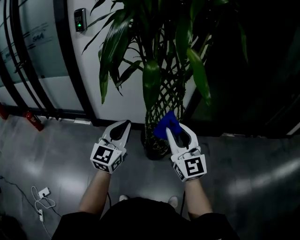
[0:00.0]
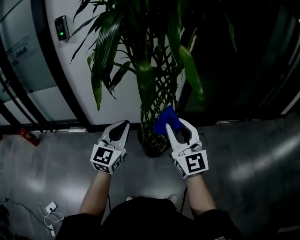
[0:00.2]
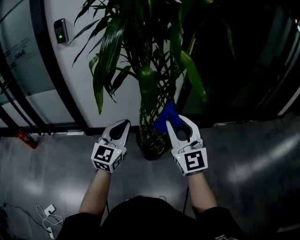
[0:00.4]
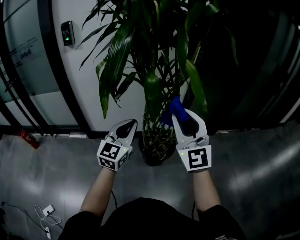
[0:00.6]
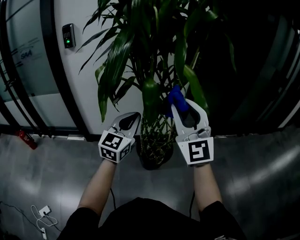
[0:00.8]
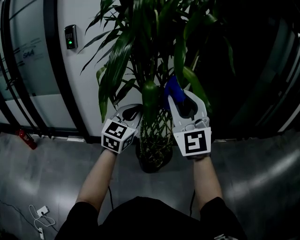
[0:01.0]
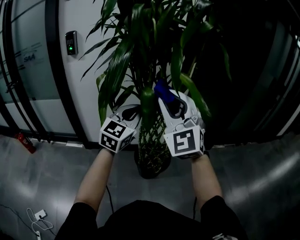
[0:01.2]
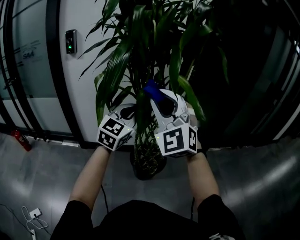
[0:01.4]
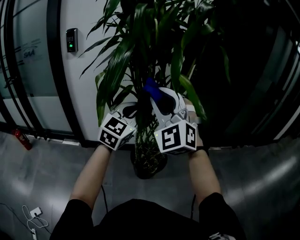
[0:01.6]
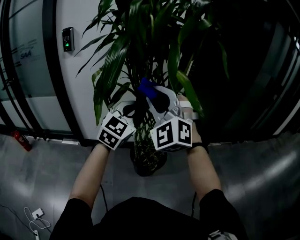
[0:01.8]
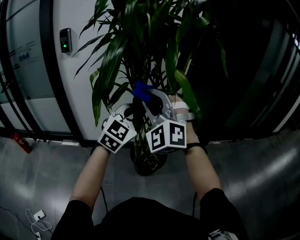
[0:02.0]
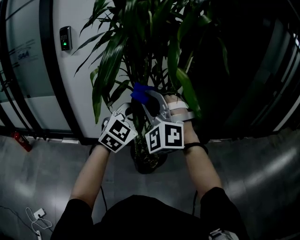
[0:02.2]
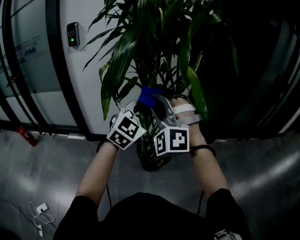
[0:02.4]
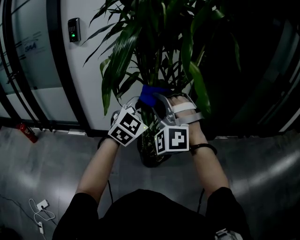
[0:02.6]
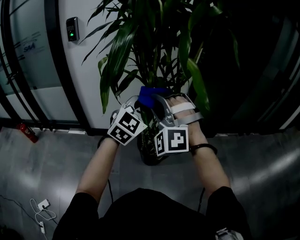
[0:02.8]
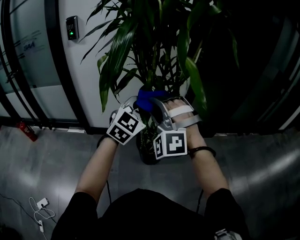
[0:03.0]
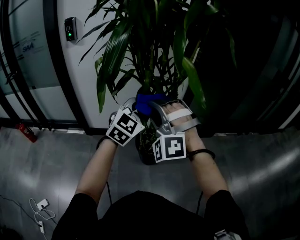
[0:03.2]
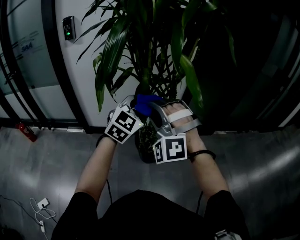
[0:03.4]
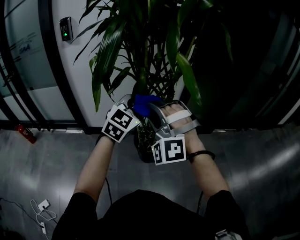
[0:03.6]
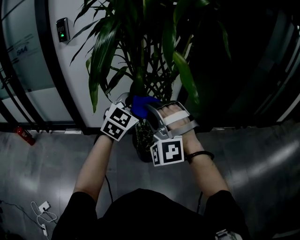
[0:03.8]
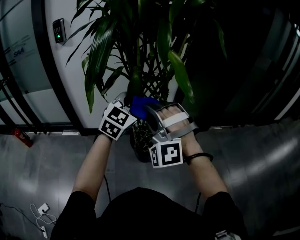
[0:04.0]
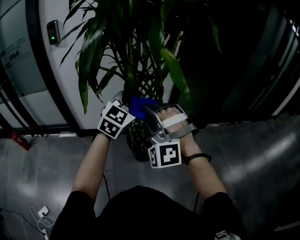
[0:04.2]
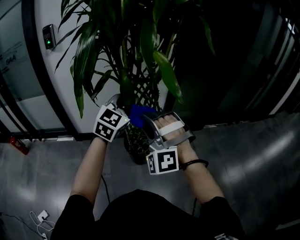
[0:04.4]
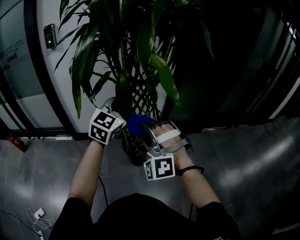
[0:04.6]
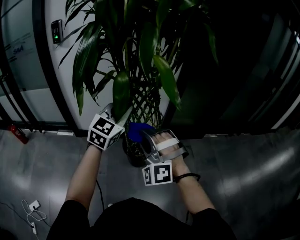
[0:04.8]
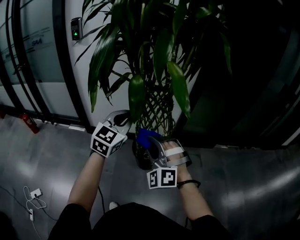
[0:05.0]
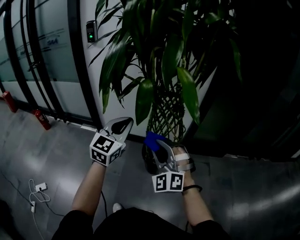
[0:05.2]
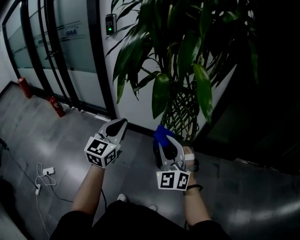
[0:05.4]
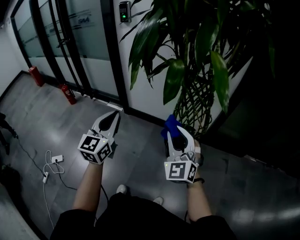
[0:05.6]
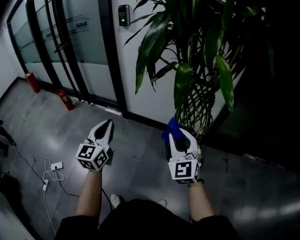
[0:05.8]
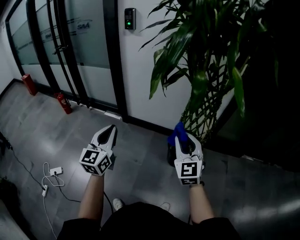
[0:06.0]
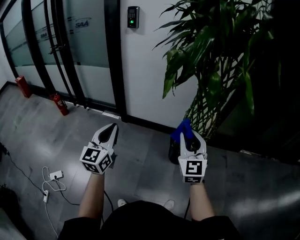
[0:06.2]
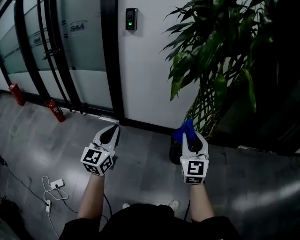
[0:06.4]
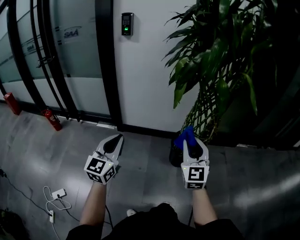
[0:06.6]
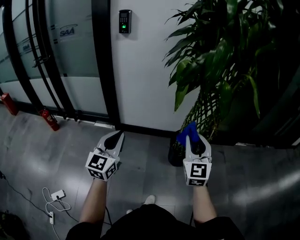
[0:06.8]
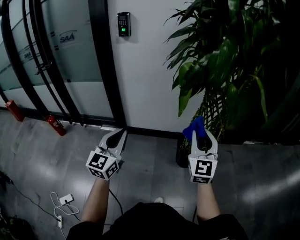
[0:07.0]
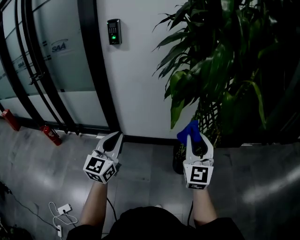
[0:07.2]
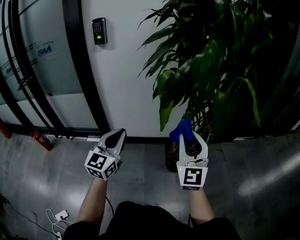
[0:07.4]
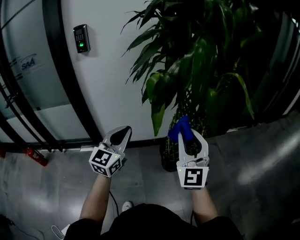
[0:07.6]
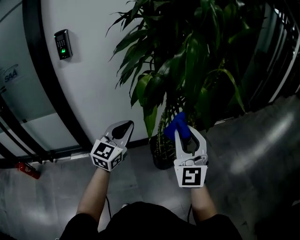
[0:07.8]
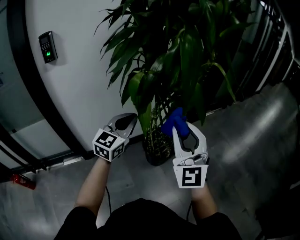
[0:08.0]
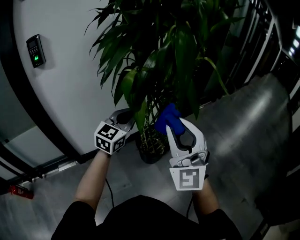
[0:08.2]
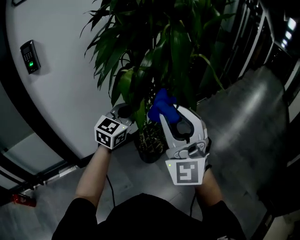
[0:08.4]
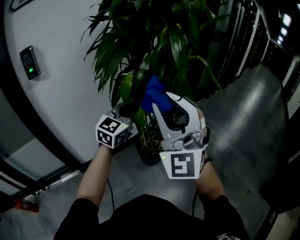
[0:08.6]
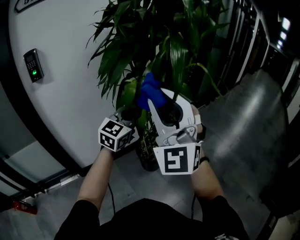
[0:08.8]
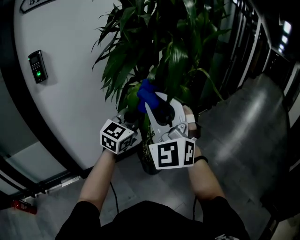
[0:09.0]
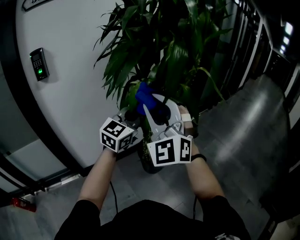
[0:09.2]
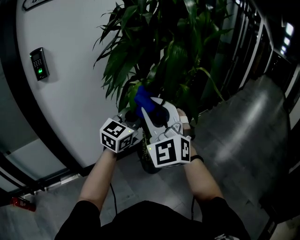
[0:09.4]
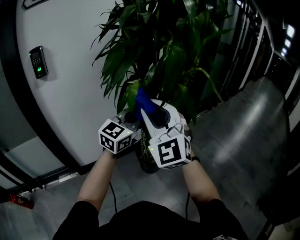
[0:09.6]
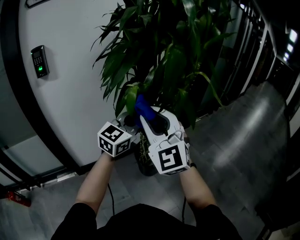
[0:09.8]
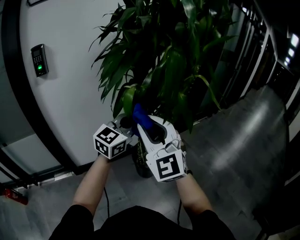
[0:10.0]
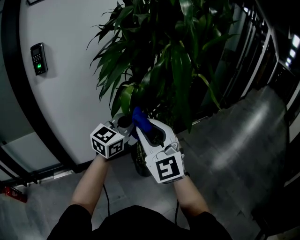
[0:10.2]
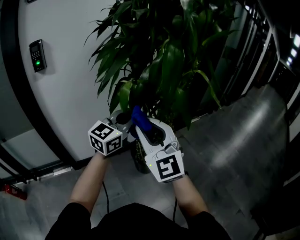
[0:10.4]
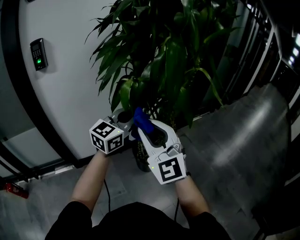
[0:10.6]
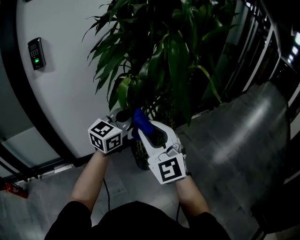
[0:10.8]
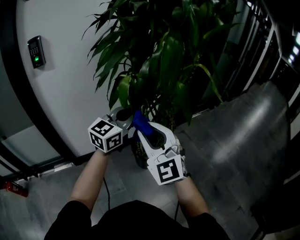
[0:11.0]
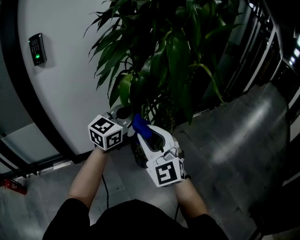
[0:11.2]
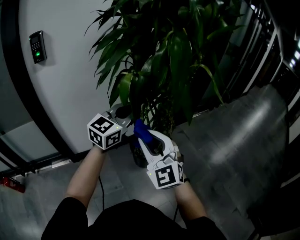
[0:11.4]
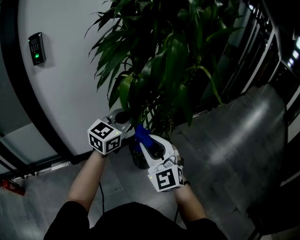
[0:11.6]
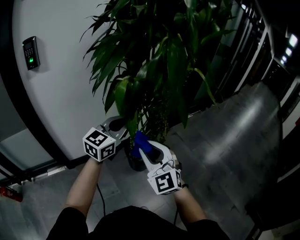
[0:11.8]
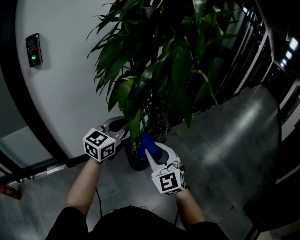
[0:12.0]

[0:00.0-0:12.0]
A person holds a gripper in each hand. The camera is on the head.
0:00.0 to 0:01.6: The left gripper is displaced upward, forward and to the right by roughly 15 cm, and changes its angle by about 20 degrees; the right gripper heads upward and to the left, covering about 20 cm, and rolls counterclockwise, seen from behind, by roughly 50 degrees.
0:01.6 to 0:03.0: The left gripper changes place by about 5 cm, while the right gripper goes roughly 10 cm downward, and changes its angle by about 30 degrees.
0:03.0 to 0:04.4: The right gripper moves to the right, some 5 cm.
0:04.4 to 0:06.0: The left gripper shifts by about 40 cm, and turns by about 50 degrees. The right gripper travels downward by approximately 10 cm, and rotates around the line of its fingers by approximately 60 degrees, clockwise from behind.
0:06.0 to 0:07.6: The left gripper shifts by roughly 20 cm, and changes its angle by some 40 degrees. The right gripper ends up some 15 cm from where it was, and rotates about 30 degrees.
0:07.6 to 0:09.0: The left gripper moves forward, to the right and upward, roughly 15 cm, and changes its angle by about 40 degrees; the right gripper moves upward and to the left, about 20 cm, and rotates about 40 degrees.
0:09.0 to 0:10.4: The right gripper heads downward, covering about 10 cm, and changes its angle by about 30 degrees.
0:10.4 to 0:12.0: The left gripper moves downward, roughly 5 cm, while the right gripper travels downward by some 10 cm.

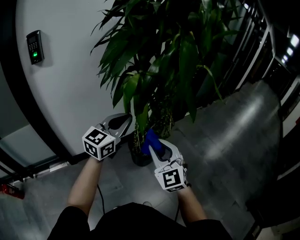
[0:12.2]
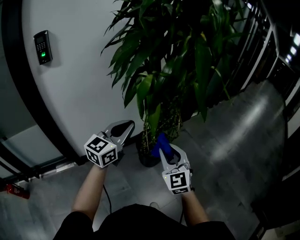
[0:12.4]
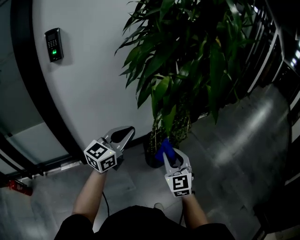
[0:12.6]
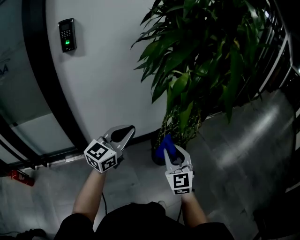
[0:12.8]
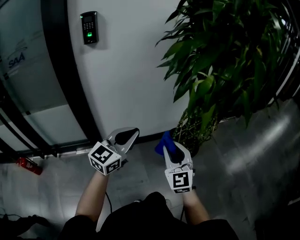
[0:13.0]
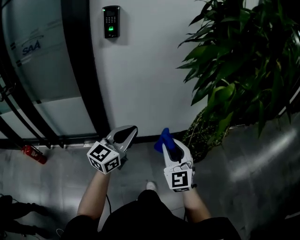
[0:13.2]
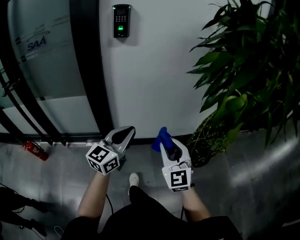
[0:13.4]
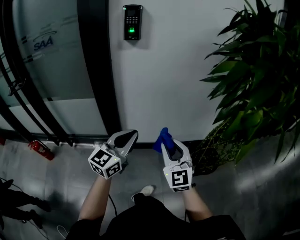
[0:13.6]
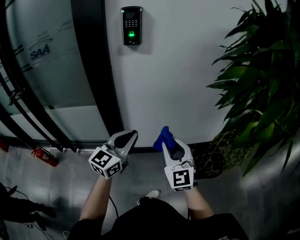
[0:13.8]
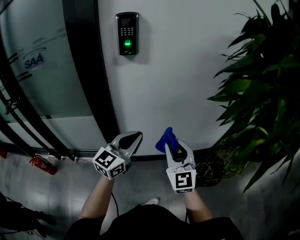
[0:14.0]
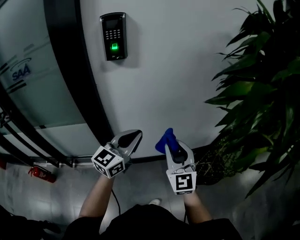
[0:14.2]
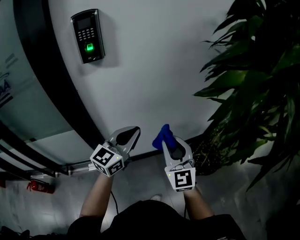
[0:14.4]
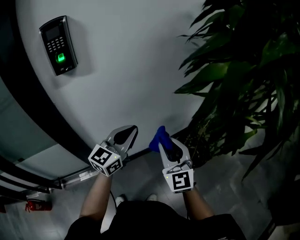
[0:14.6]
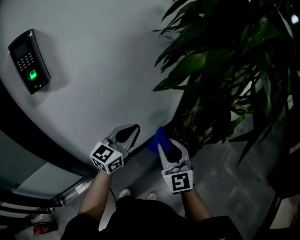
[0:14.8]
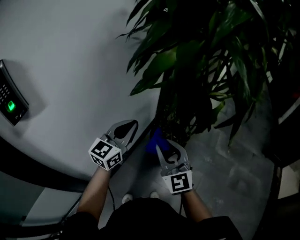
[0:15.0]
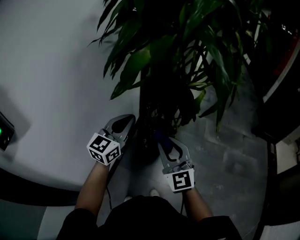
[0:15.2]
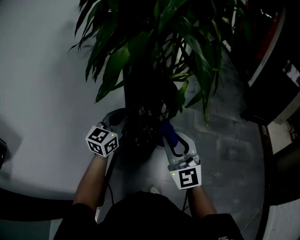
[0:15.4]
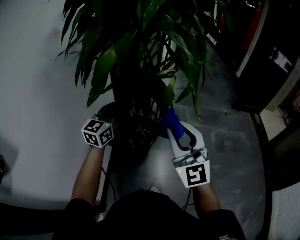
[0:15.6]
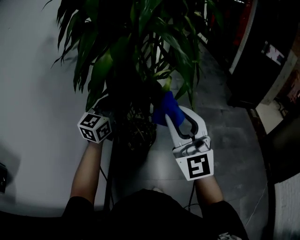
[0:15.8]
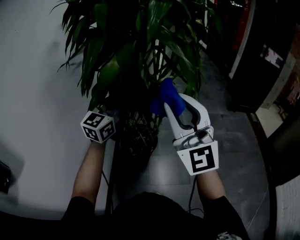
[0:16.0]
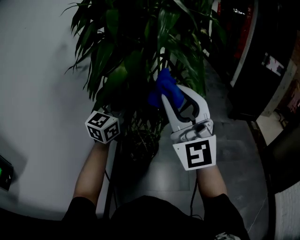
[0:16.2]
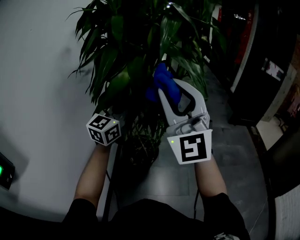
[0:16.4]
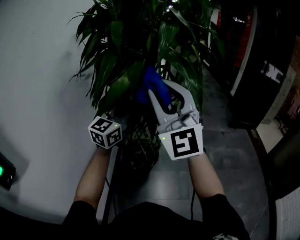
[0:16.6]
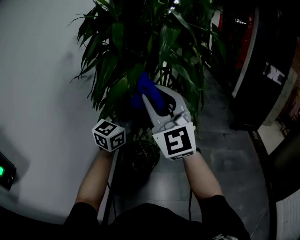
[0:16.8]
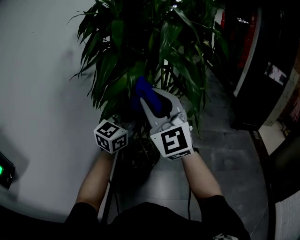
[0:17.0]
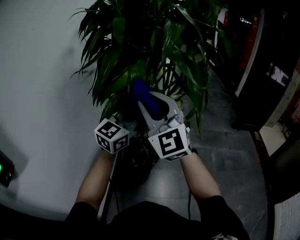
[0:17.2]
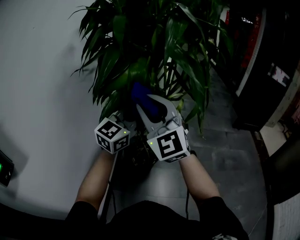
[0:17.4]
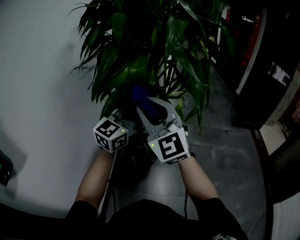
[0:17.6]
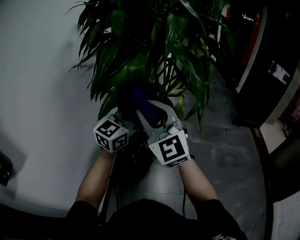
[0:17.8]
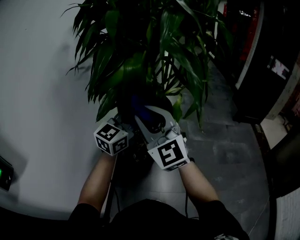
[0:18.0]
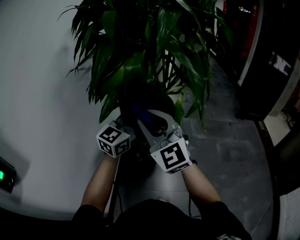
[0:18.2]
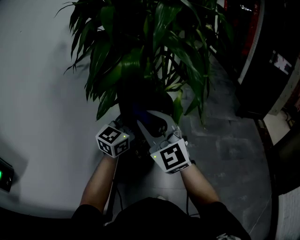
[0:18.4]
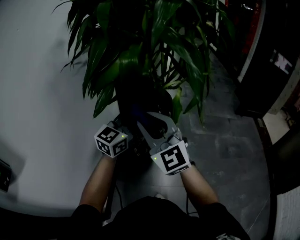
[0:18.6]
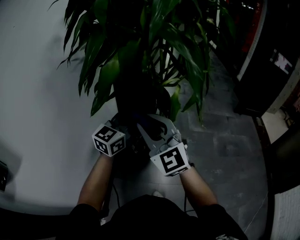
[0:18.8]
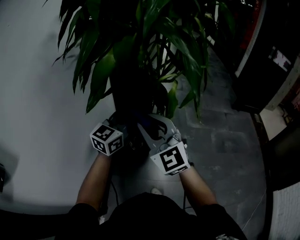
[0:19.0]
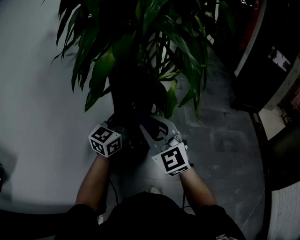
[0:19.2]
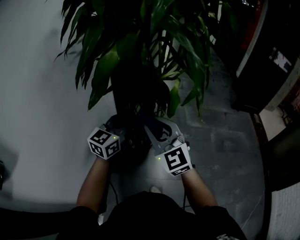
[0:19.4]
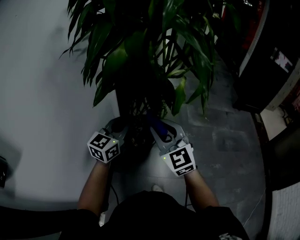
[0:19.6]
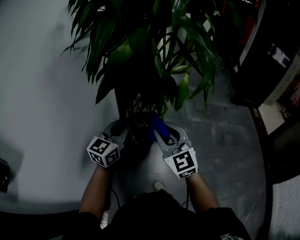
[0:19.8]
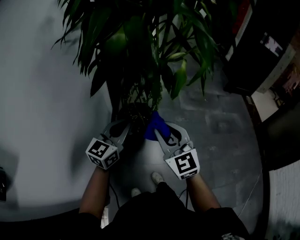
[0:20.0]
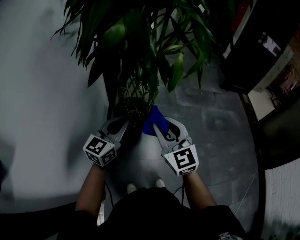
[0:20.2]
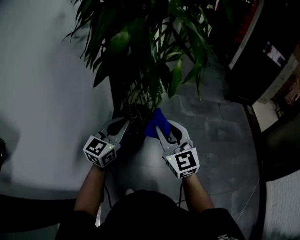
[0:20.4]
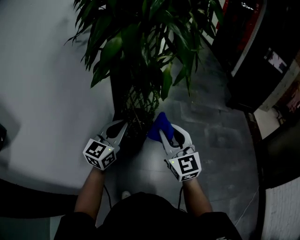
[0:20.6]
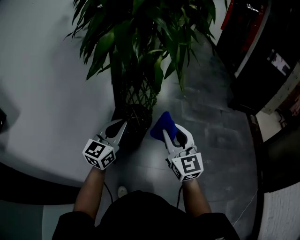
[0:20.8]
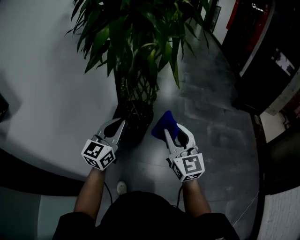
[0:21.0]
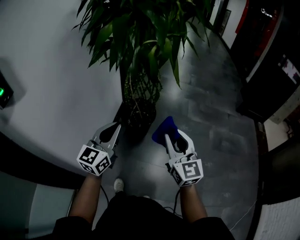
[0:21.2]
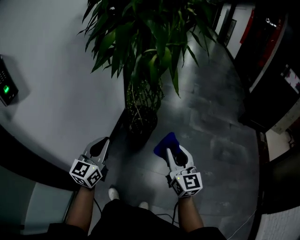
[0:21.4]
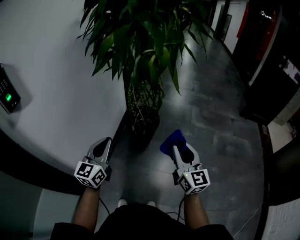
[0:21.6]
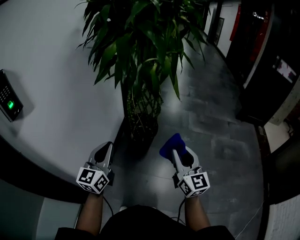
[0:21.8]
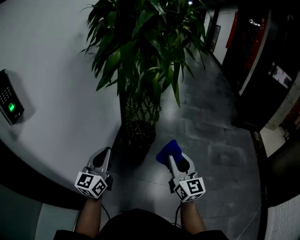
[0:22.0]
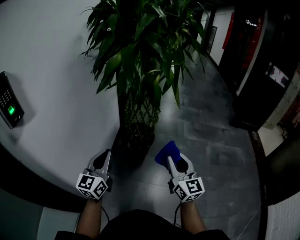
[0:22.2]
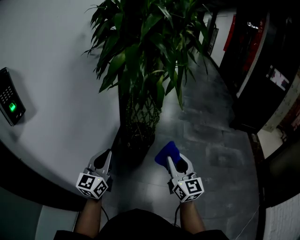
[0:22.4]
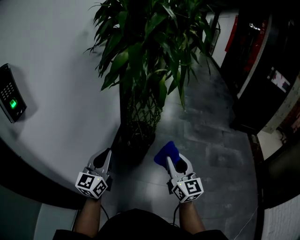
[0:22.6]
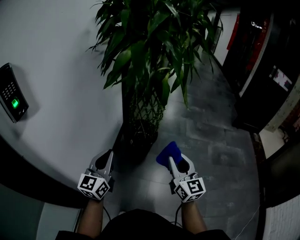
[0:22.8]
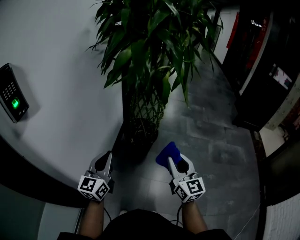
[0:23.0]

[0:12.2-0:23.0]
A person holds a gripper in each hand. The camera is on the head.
0:12.2 to 0:13.8: The left gripper moves roughly 40 cm, and turns by some 30 degrees. Meanwhile the right gripper changes place by some 40 cm, and turns by some 20 degrees.
0:13.8 to 0:15.2: The left gripper changes place by some 35 cm, and rotates roughly 60 degrees. Meanwhile the right gripper ends up roughly 20 cm from where it was, and turns by about 60 degrees.
0:15.2 to 0:16.8: The right gripper moves upward, about 25 cm, and turns by about 30 degrees. The left gripper is displaced upward, to the right and forward by about 15 cm, and rotates about 20 degrees.
0:16.8 to 0:18.4: The right gripper travels downward by approximately 15 cm; the left gripper goes approximately 5 cm downward.
0:18.4 to 0:20.0: The right gripper heads downward and to the right, covering about 15 cm, and rotates approximately 20 degrees. Meanwhile the left gripper moves downward, backward and to the left, about 15 cm.
0:20.0 to 0:21.4: The left gripper goes about 20 cm backward, and swivels roughly 30 degrees. Meanwhile the right gripper heads to the right and backward, covering roughly 25 cm, and rotates about 20 degrees.
0:21.4 to 0:23.0: Both grippers travel together to the left, roughly 10 cm.
